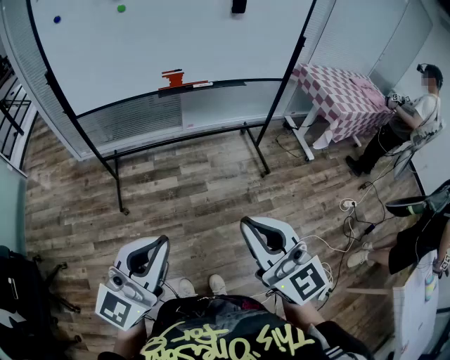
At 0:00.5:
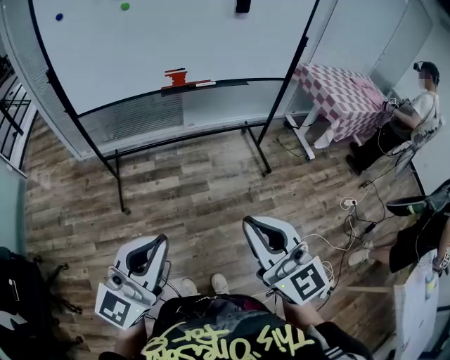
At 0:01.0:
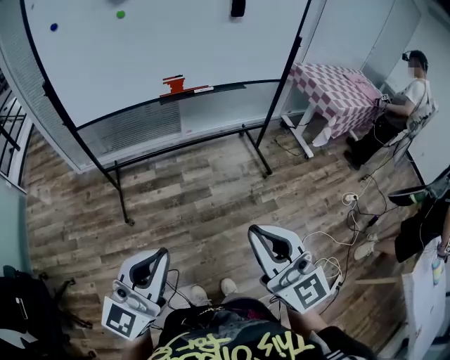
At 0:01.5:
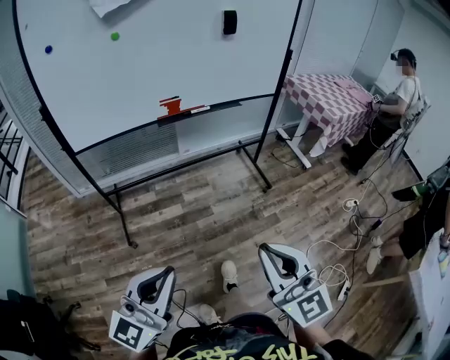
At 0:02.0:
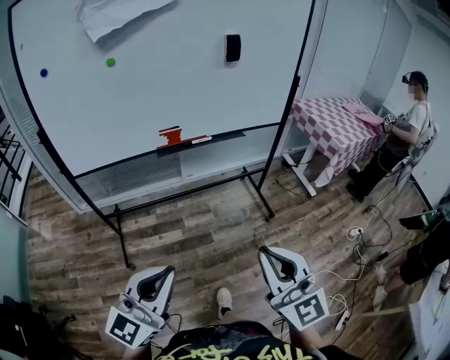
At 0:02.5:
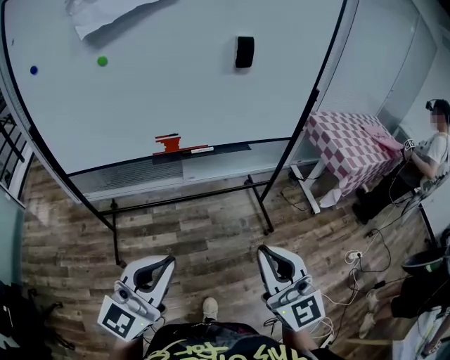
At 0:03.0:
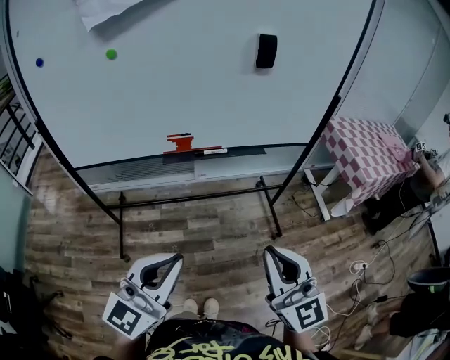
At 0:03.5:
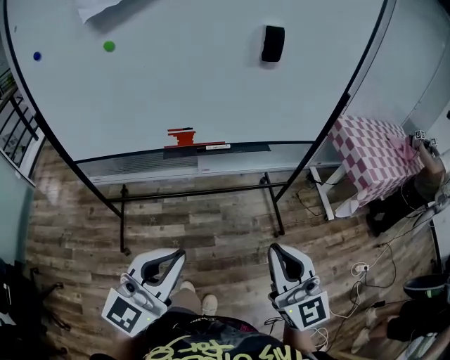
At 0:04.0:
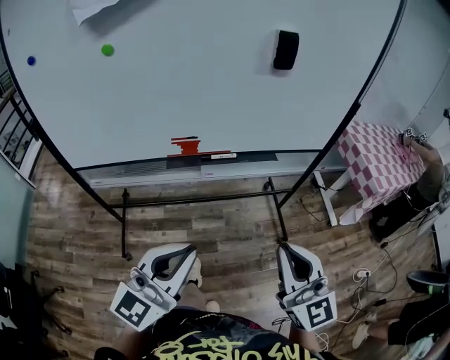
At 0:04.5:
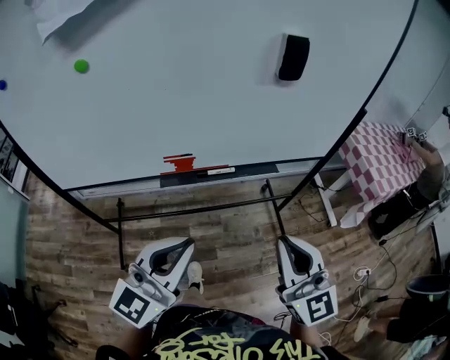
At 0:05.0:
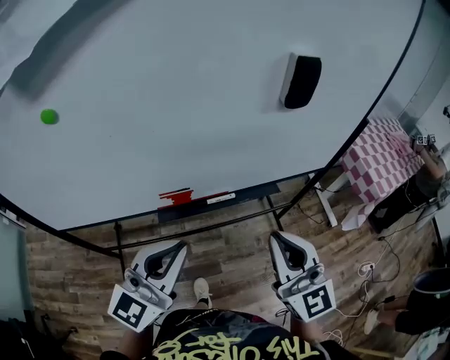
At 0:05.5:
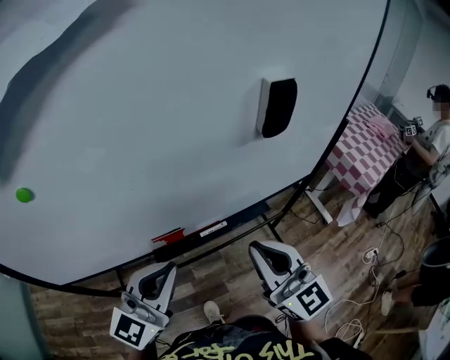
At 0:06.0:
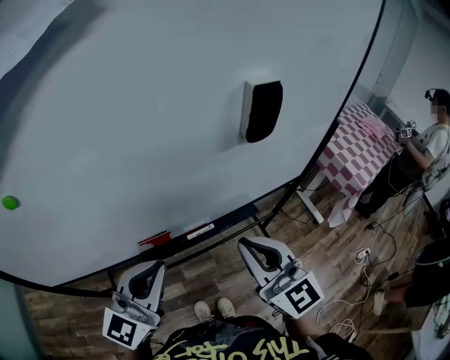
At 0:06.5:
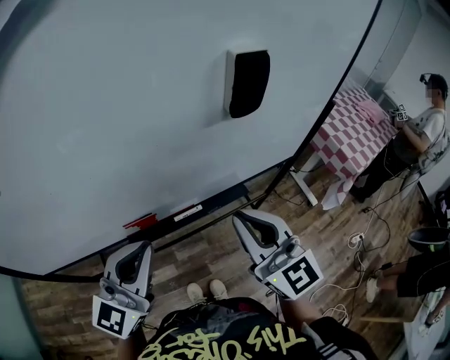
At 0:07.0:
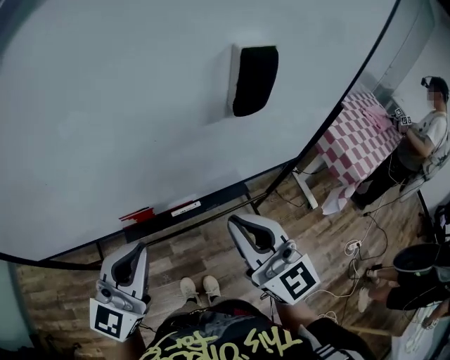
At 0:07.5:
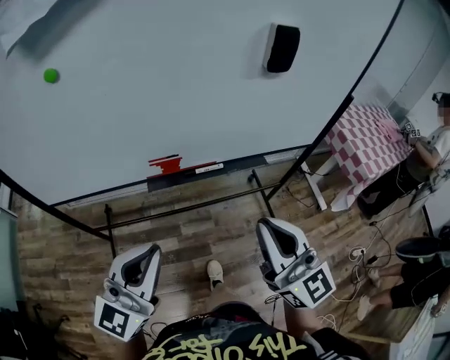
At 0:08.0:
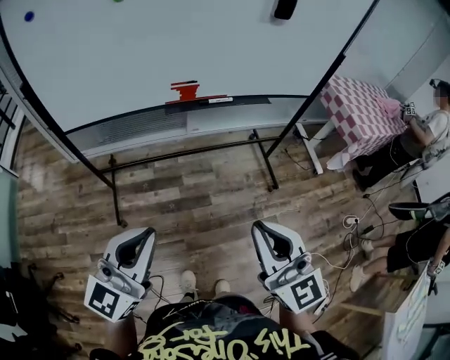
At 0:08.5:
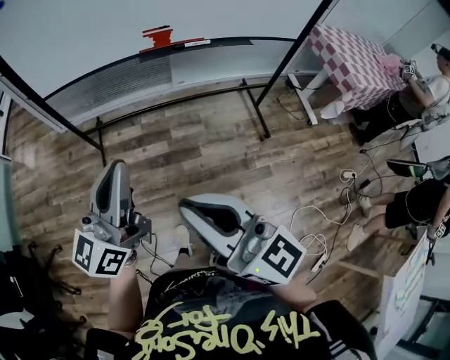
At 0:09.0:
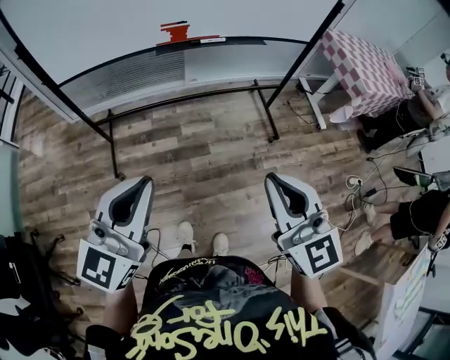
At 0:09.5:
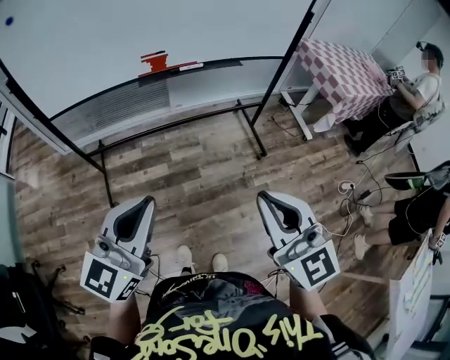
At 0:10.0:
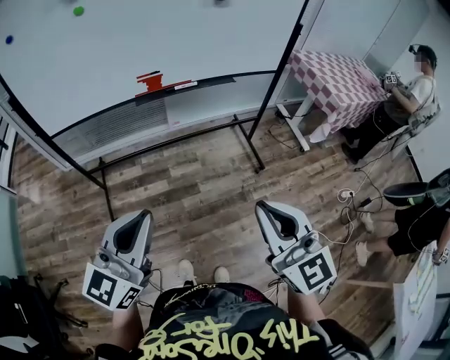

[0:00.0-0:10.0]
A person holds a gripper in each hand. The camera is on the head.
0:00.0 to 0:02.0: The two grippers go about 10 cm forward.
0:02.0 to 0:04.0: Both grippers travel together forward, about 20 cm.
0:04.0 to 0:06.0: The left gripper shifts approximately 25 cm forward. The right gripper is displaced forward and to the left by roughly 25 cm.
0:06.0 to 0:08.0: The two grippers go some 35 cm backward.
0:08.0 to 0:10.0: The right gripper shifts roughly 10 cm to the right and backward, while the left gripper goes approximately 5 cm to the right.

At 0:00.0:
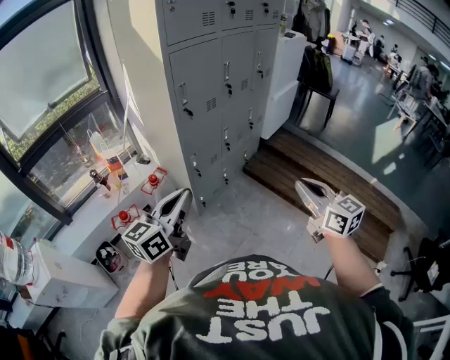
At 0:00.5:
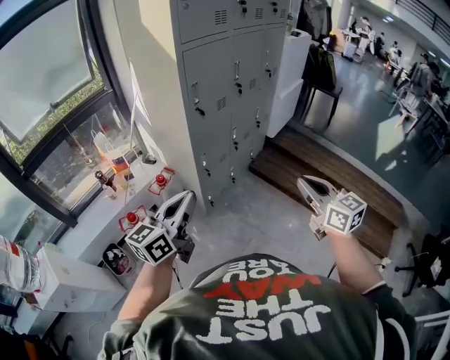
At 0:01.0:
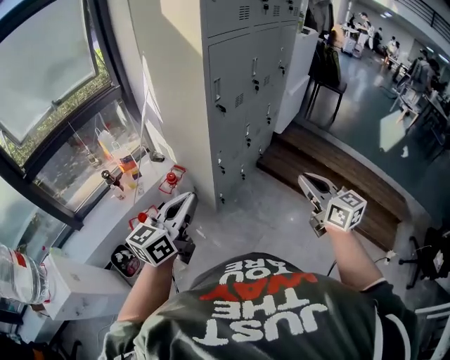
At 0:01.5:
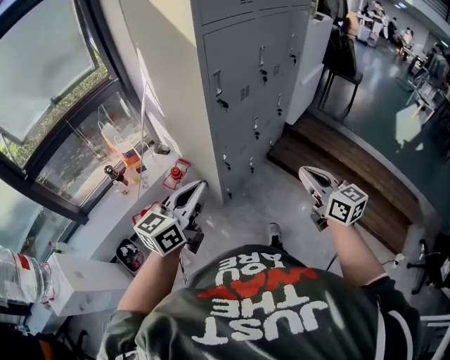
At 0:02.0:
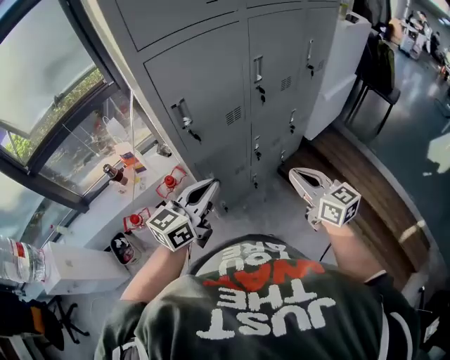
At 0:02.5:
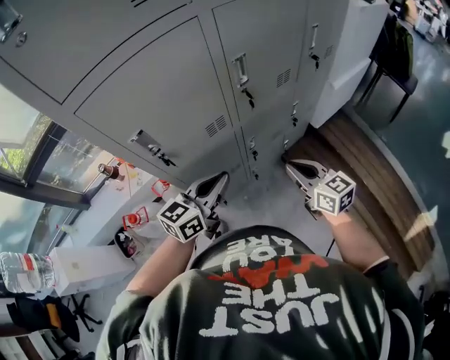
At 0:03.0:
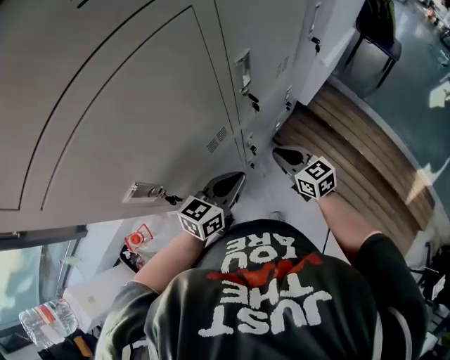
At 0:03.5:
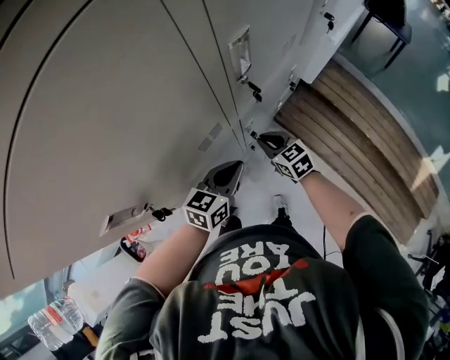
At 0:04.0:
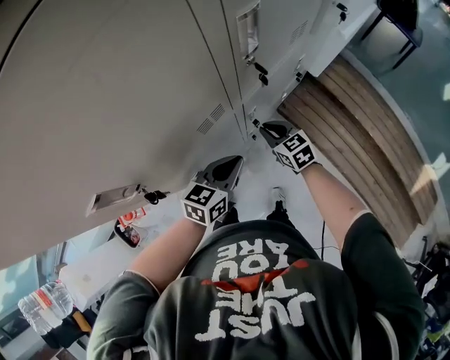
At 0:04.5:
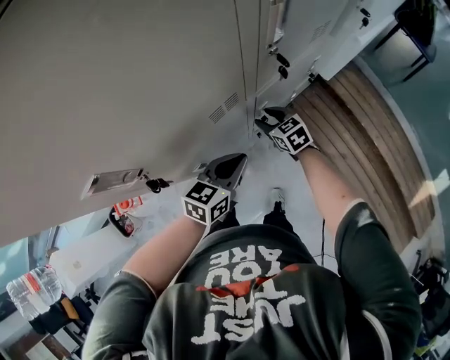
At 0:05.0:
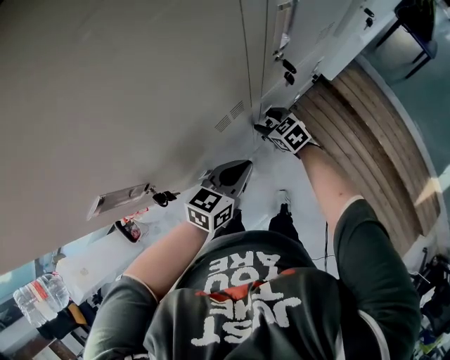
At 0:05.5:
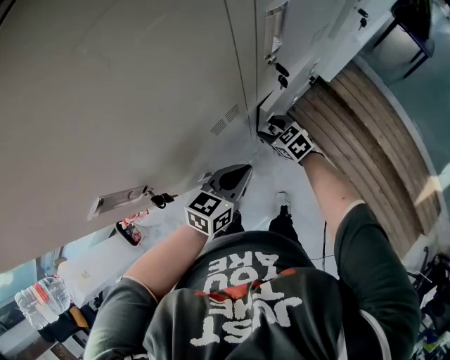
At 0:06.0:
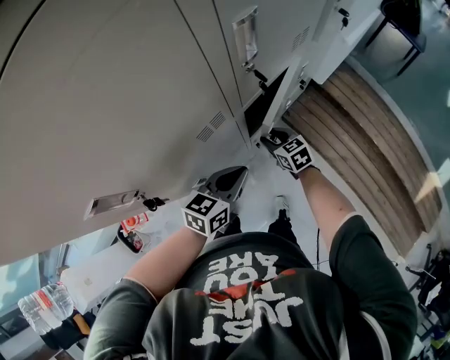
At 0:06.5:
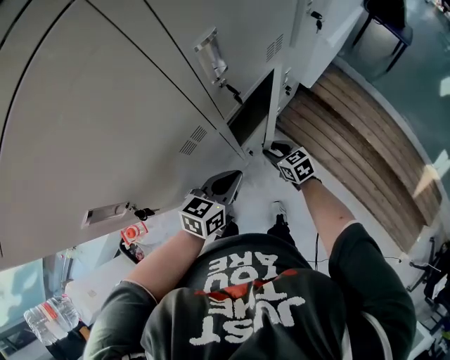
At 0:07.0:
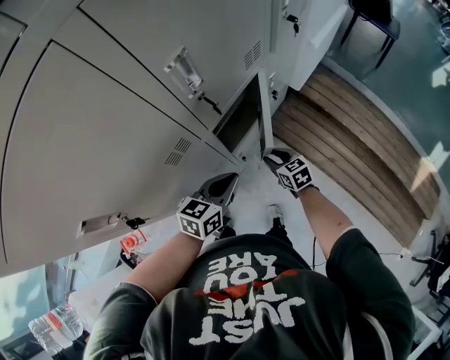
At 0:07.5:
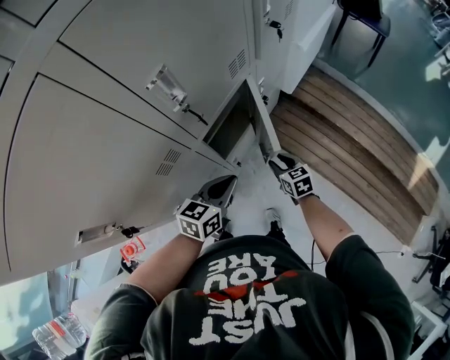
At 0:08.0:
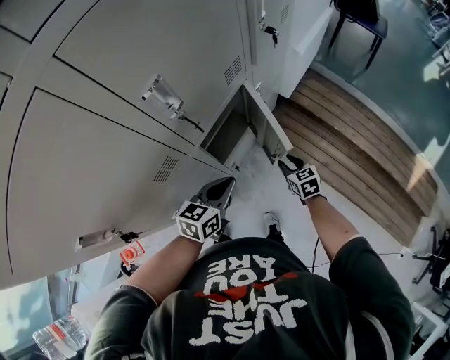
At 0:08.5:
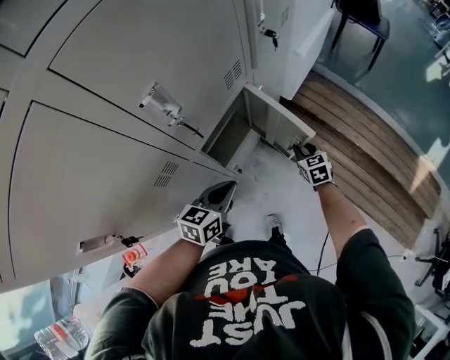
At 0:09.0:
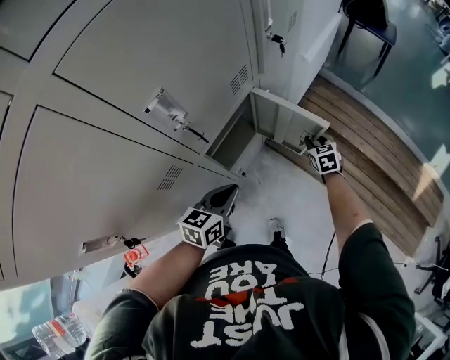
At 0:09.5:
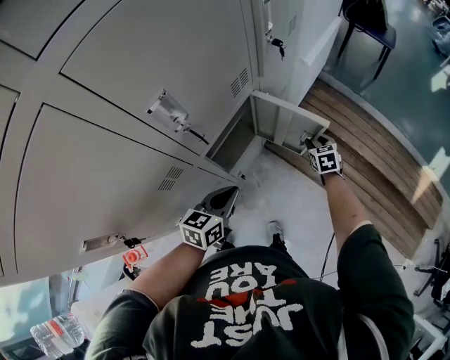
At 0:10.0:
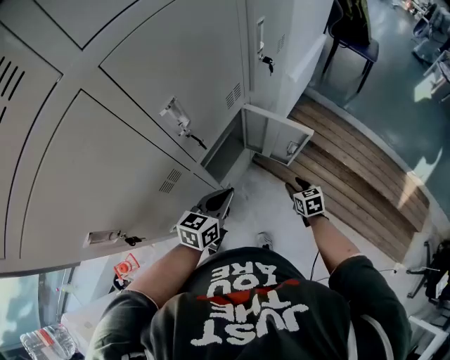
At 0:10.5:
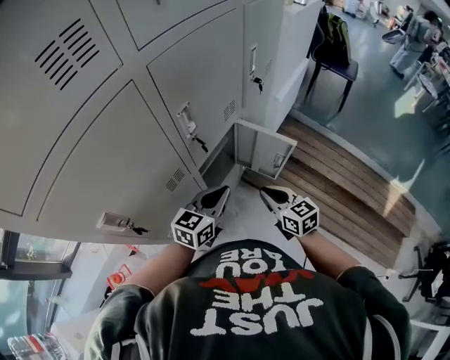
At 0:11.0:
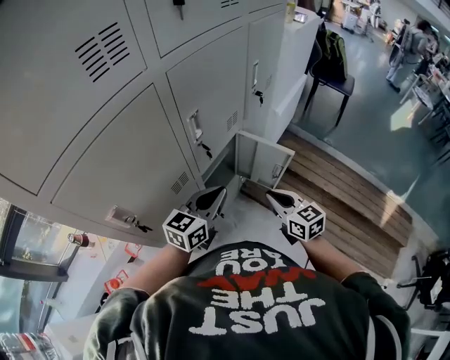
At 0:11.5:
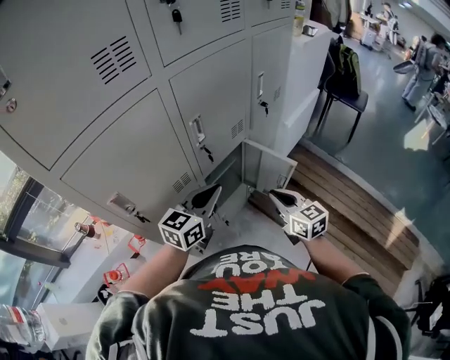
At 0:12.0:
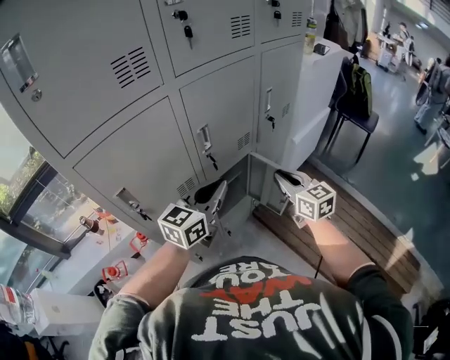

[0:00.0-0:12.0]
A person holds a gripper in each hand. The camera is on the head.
0:00.0 to 0:02.0: The two grippers go roughly 35 cm forward.
0:02.0 to 0:04.0: Both grippers move downward and forward, about 35 cm. The right gripper swivels some 30 degrees; the left gripper swivels about 30 degrees.
0:04.0 to 0:06.0: The right gripper moves downward, approximately 5 cm, and opens.
0:06.0 to 0:08.0: The left gripper heads to the right, covering some 10 cm. Meanwhile the right gripper goes approximately 20 cm to the right, and rotates roughly 20 degrees.
0:08.0 to 0:10.0: The right gripper travels to the right by about 5 cm, and travels forward and back again, approximately 15 cm each way.
0:10.0 to 0:12.0: The grippers both shift upward by about 30 cm. The left gripper swivels some 30 degrees, while the right gripper tips its fingers upward by roughly 40 degrees, and closes.

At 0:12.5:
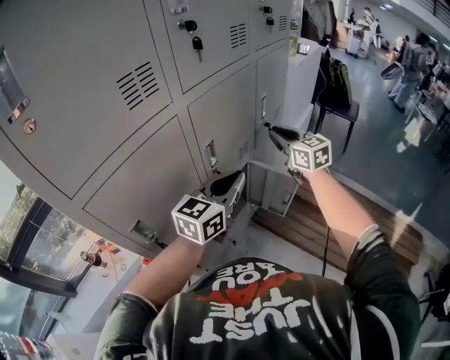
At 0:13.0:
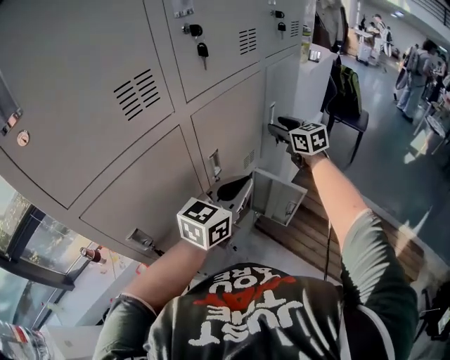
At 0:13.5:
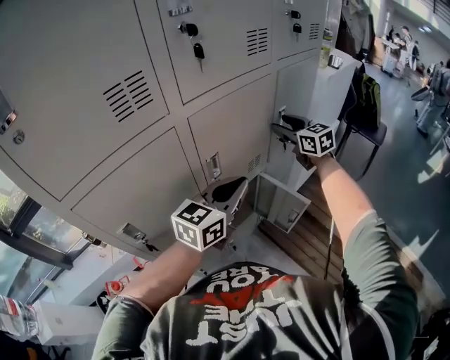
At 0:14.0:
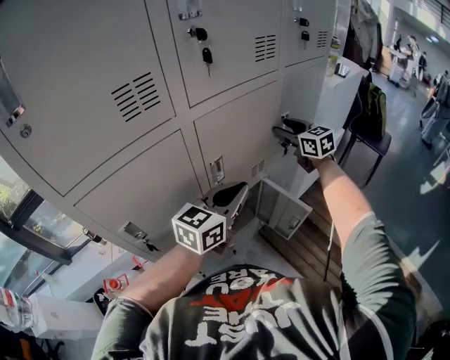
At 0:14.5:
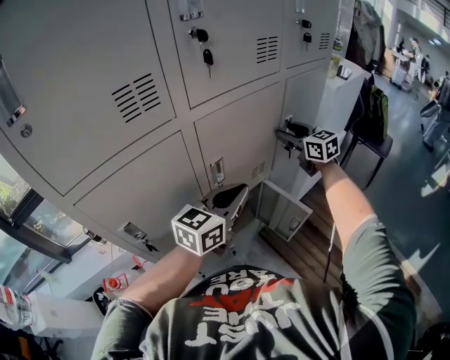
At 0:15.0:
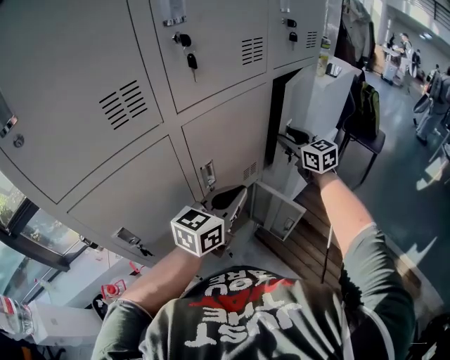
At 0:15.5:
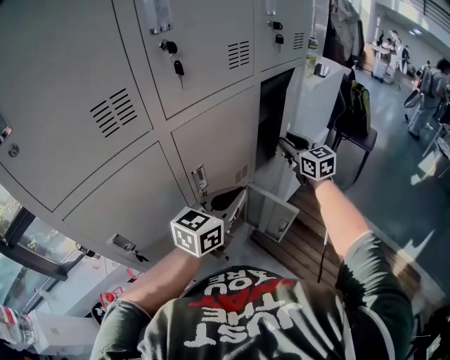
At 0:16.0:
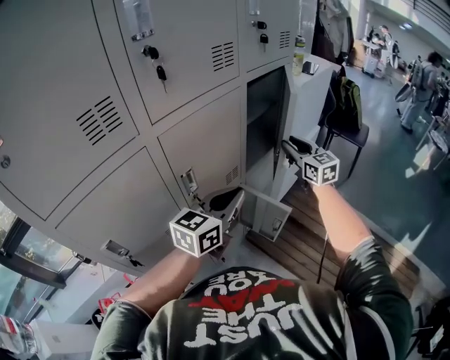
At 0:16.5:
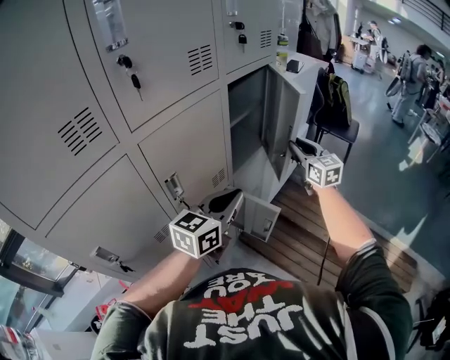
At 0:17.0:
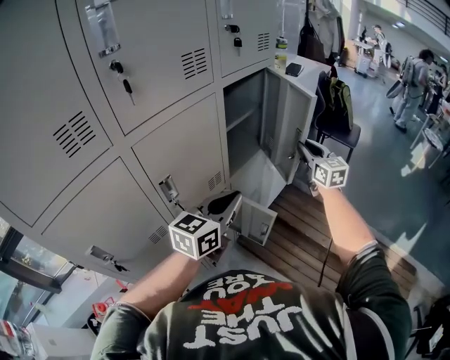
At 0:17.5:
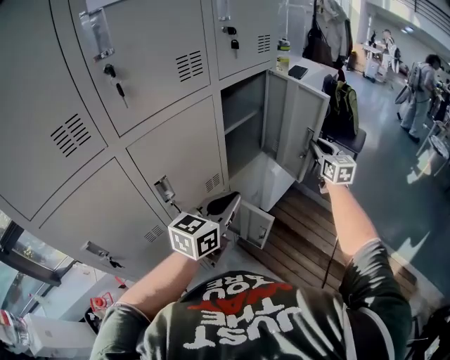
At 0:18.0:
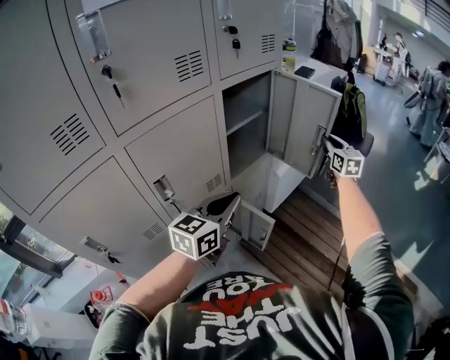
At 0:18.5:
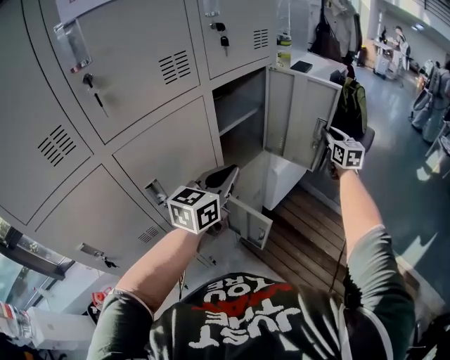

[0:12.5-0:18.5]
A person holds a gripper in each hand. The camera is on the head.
0:12.5 to 0:14.5: The right gripper heads forward, covering about 15 cm, and opens its fingers.
0:14.5 to 0:16.5: The right gripper is displaced to the right by roughly 20 cm, changes its angle by approximately 30 degrees, and closes up; the left gripper travels to the right by some 10 cm.
0:16.5 to 0:18.5: The left gripper is displaced forward by roughly 10 cm. Meanwhile the right gripper goes approximately 20 cm forward and to the right.
